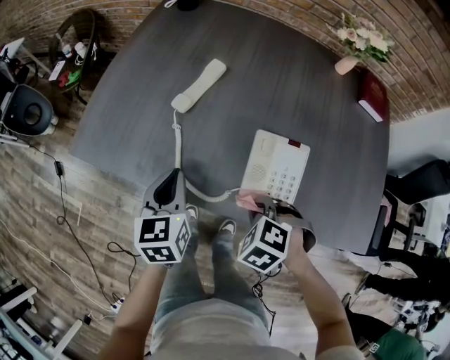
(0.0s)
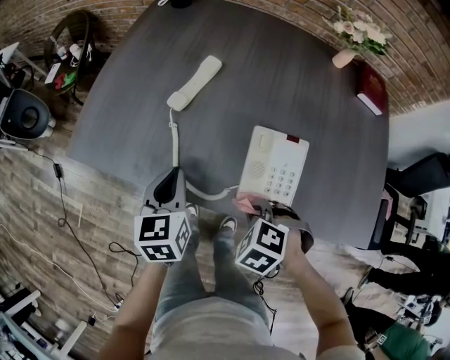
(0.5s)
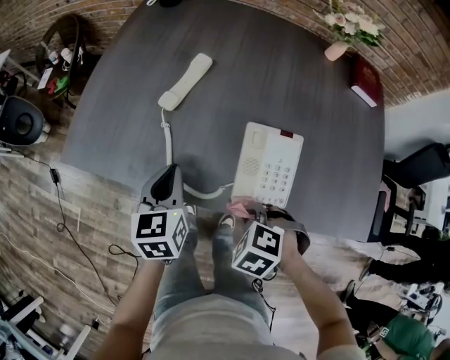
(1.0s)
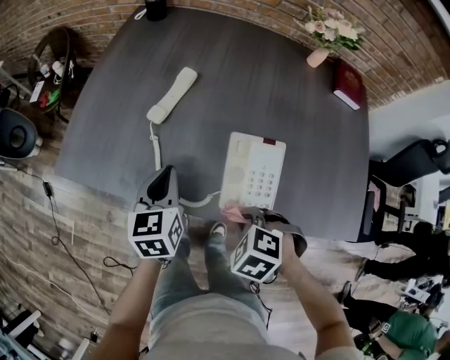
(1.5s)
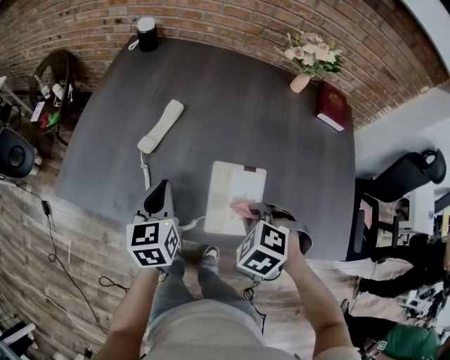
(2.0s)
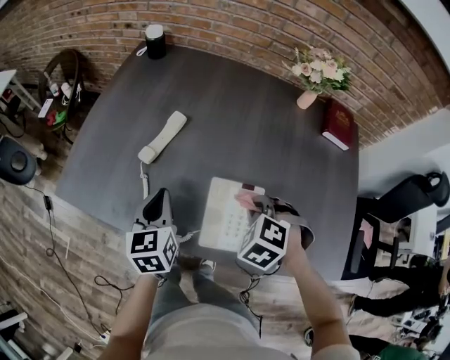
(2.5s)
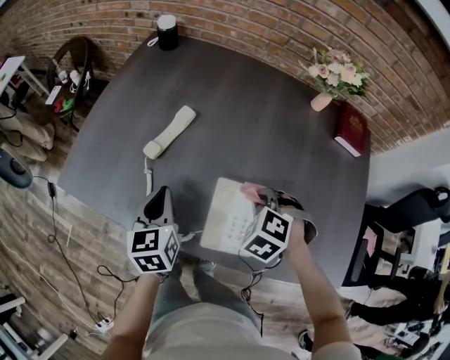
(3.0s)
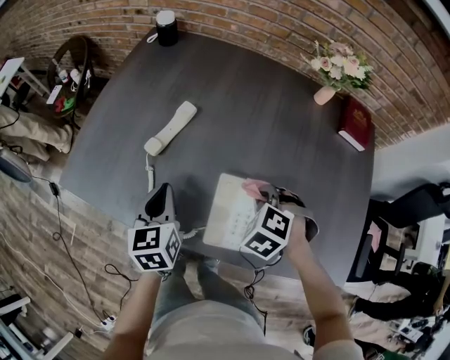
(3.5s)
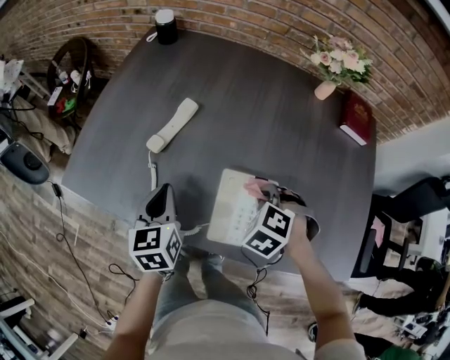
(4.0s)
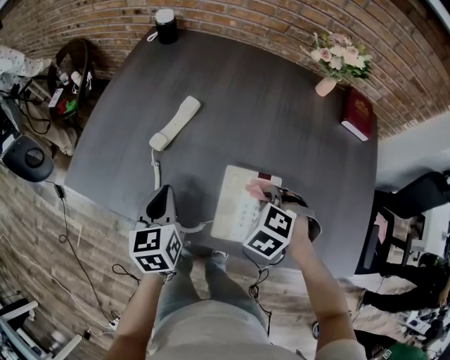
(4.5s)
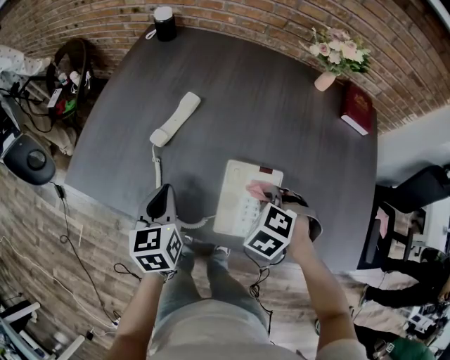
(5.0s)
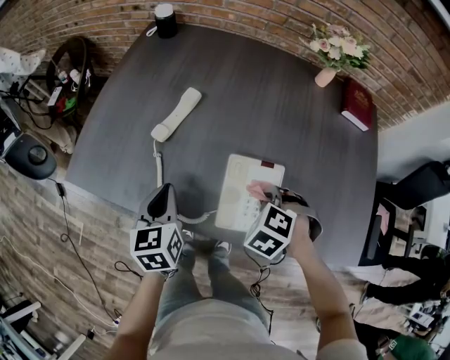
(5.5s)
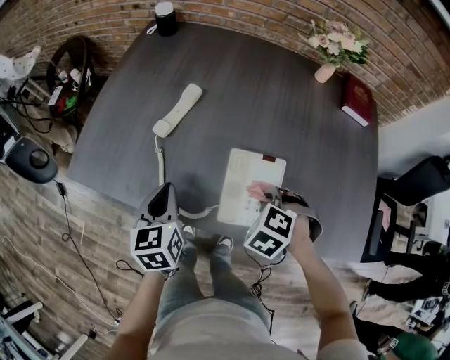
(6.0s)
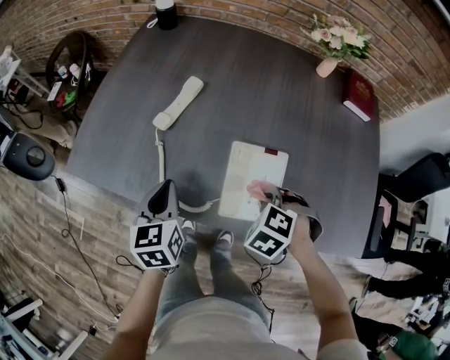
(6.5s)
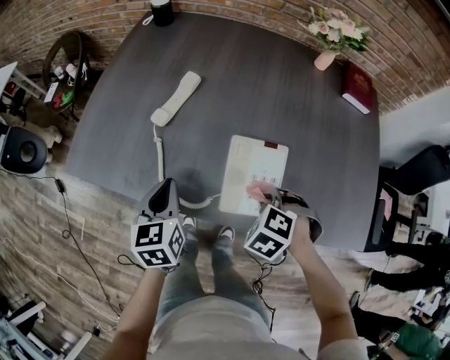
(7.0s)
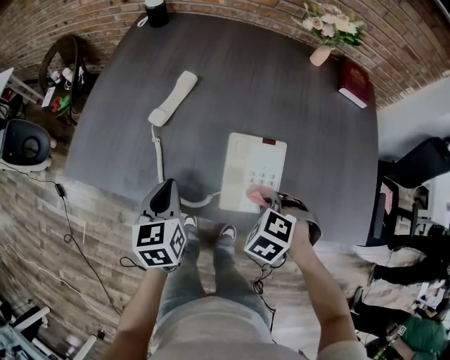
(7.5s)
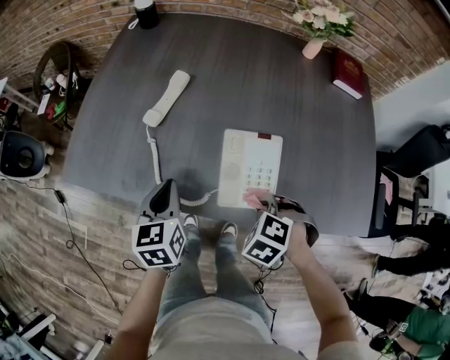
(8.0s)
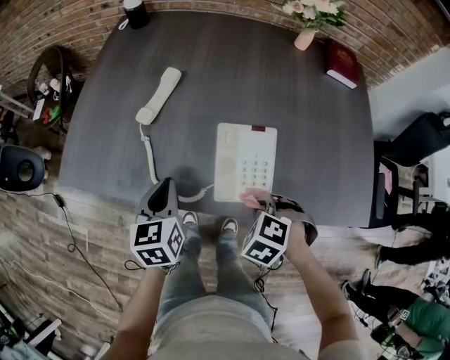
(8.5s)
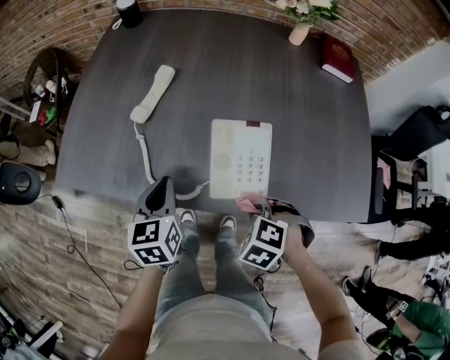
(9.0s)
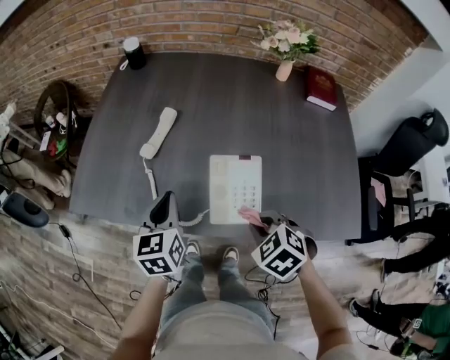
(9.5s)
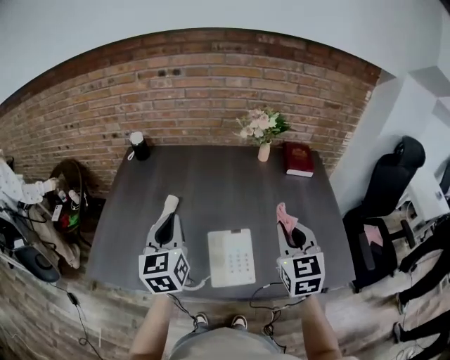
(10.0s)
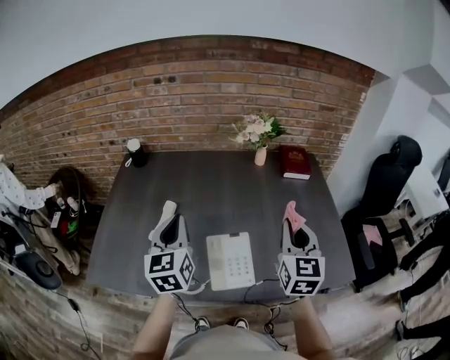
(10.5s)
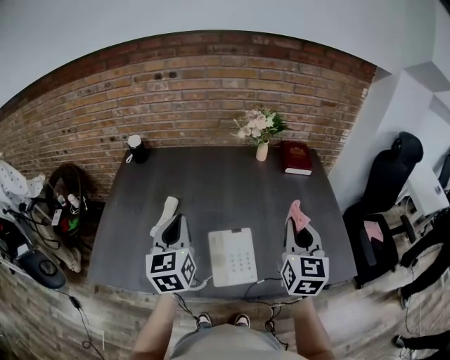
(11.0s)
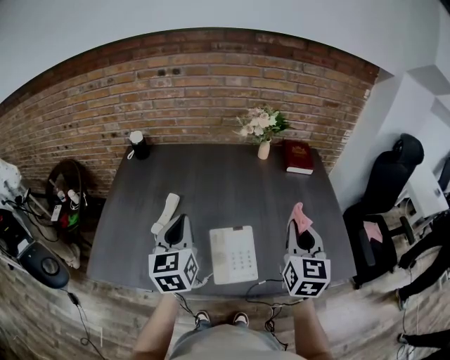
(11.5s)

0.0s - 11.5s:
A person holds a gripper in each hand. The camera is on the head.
0.0s - 2.0s: The left gripper ends up some 10 cm from where it was. The right gripper moves approximately 10 cm.
2.0s - 4.0s: The right gripper is displaced forward by approximately 10 cm.
4.0s - 6.0s: The right gripper travels backward by about 5 cm.
6.0s - 7.5s: The right gripper ends up roughly 5 cm from where it was.
7.5s - 9.5s: Both grippers move upward, about 5 cm. The right gripper changes its angle by some 30 degrees.
9.5s - 11.5s: The right gripper moves upward, to the right and forward, about 25 cm, and angles its fingers upward, by roughly 60 degrees, while the left gripper heads upward and forward, covering about 15 cm.

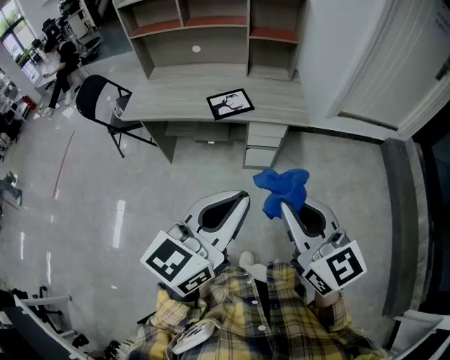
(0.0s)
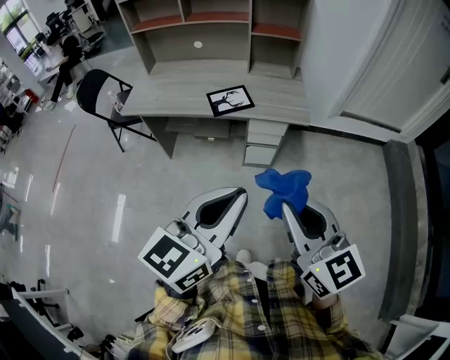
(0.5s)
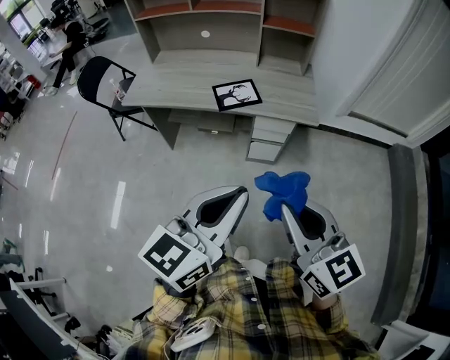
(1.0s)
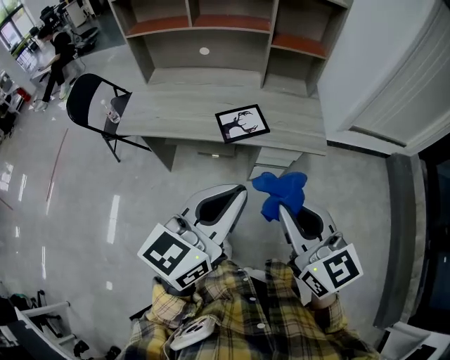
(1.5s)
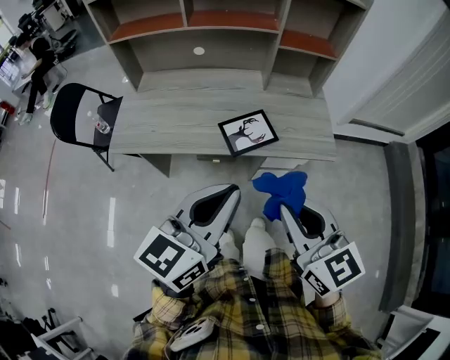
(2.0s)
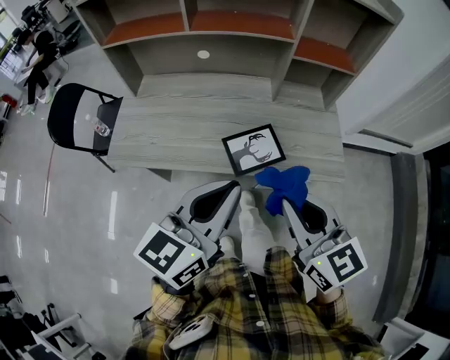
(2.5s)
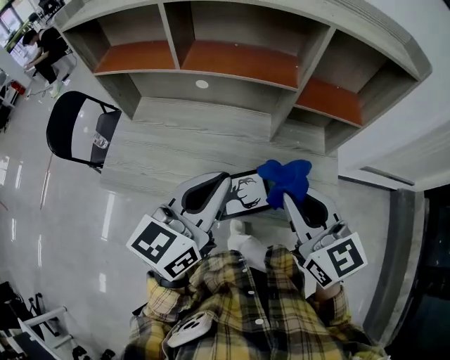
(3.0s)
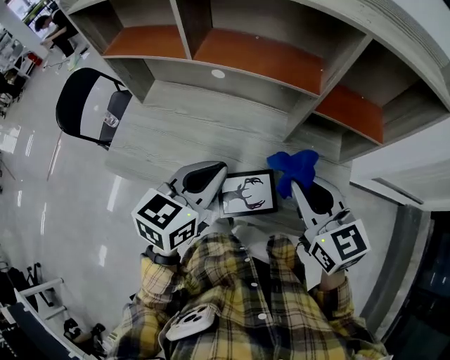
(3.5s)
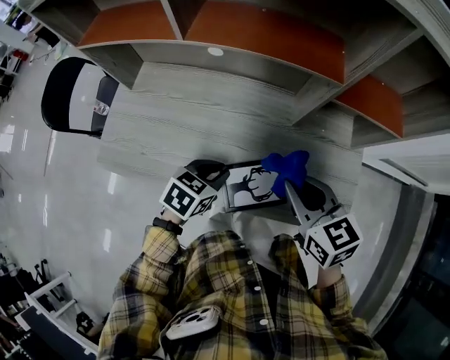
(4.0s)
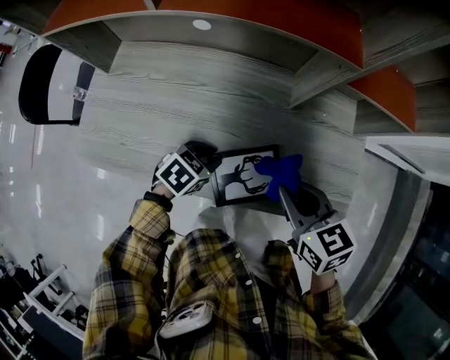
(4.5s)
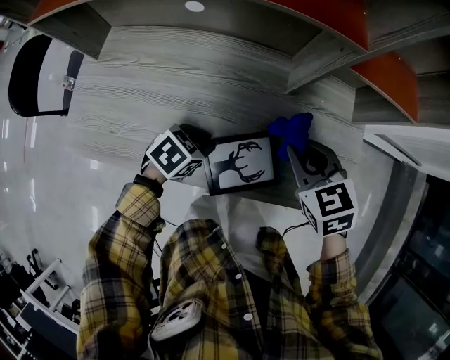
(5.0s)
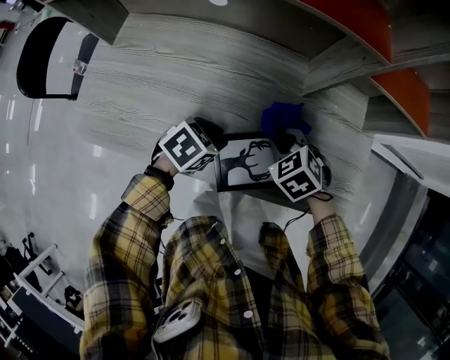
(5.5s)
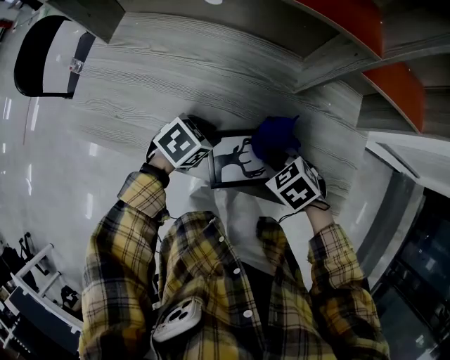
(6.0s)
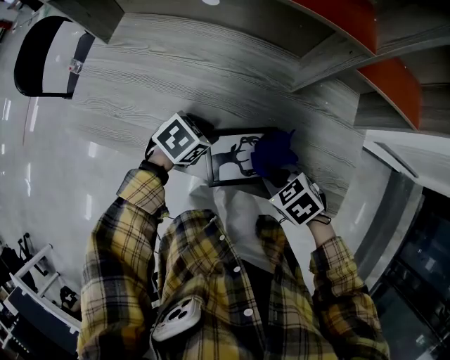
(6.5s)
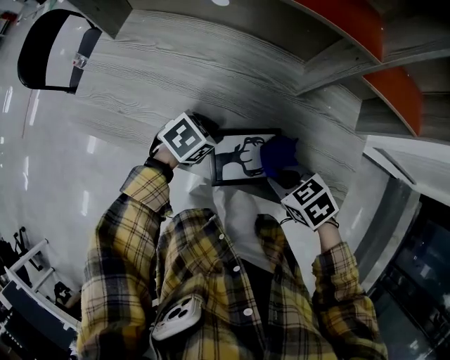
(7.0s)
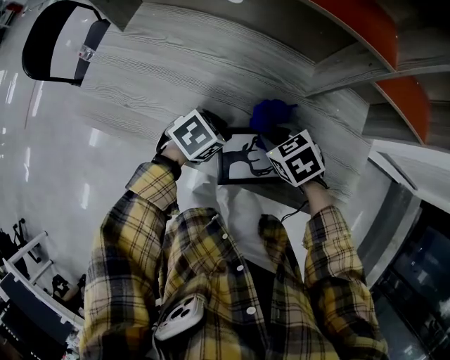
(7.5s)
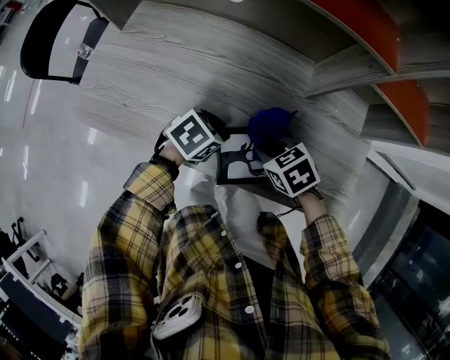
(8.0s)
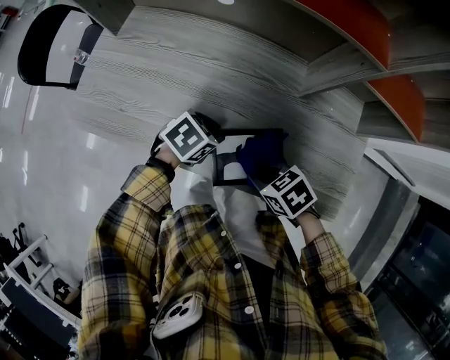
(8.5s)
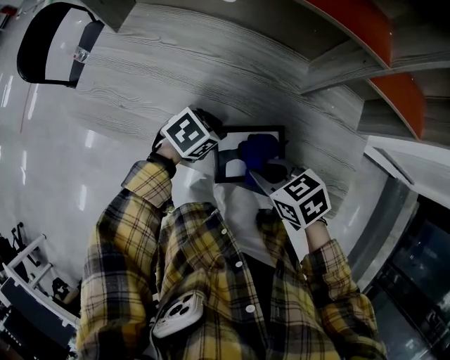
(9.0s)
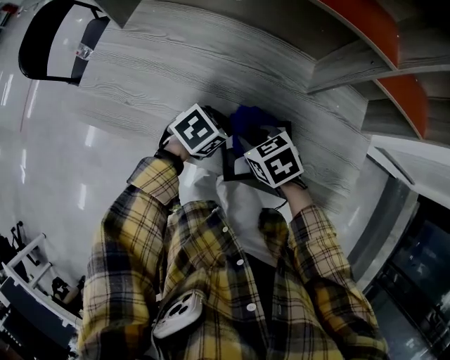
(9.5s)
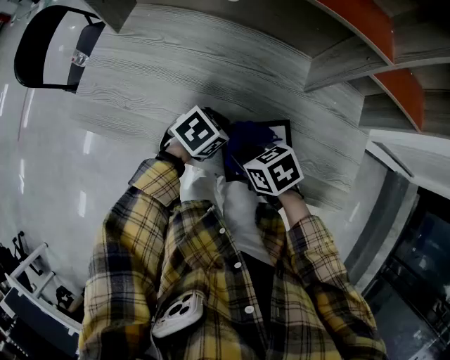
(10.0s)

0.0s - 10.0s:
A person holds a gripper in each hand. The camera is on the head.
0.0s - 2.0s: Both grippers move forward and to the left, approximately 30 cm.
2.0s - 4.0s: The left gripper moves forward and downward, some 40 cm, and points its fingers roughly 40 degrees further downward. Meanwhile the right gripper travels forward by some 35 cm, and rotates about 20 degrees.
4.0s - 6.0s: The right gripper moves downward, approximately 20 cm, and tilts its fingers about 40 degrees downward, while the left gripper shifts approximately 10 cm downward.
8.0s - 10.0s: The right gripper shifts by approximately 10 cm.

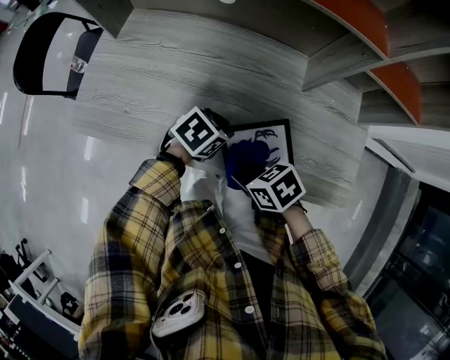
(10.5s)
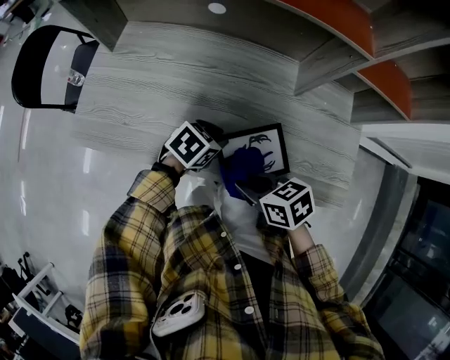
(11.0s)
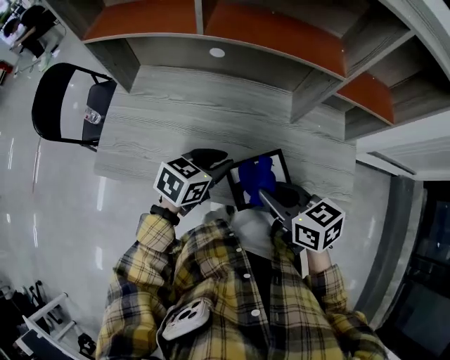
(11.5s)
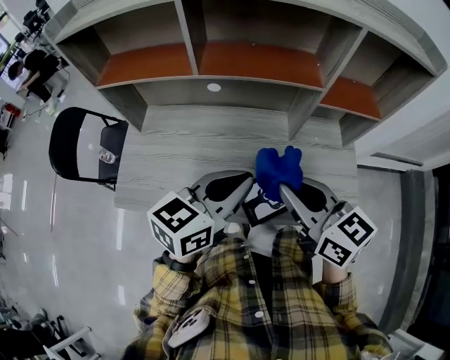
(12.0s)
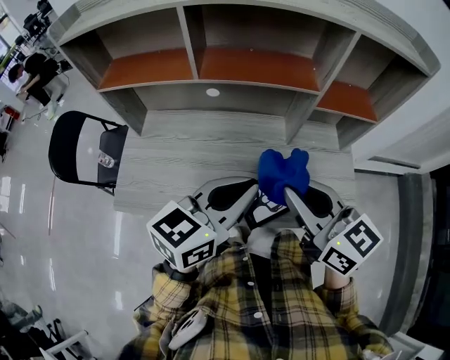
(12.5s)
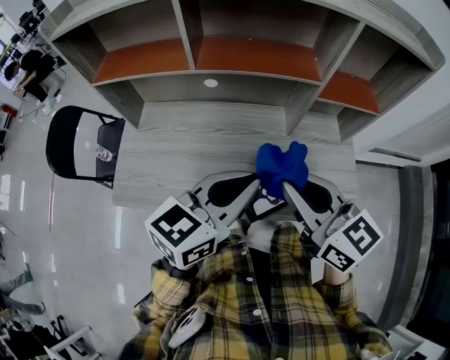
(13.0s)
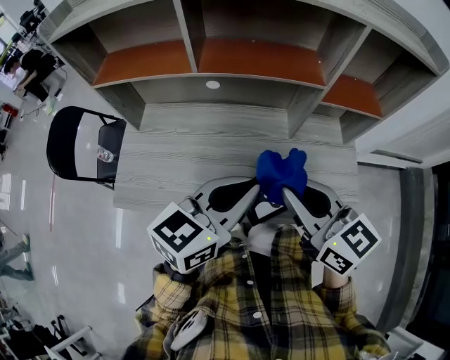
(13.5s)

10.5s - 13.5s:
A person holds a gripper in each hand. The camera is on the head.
10.5s - 12.0s: Both grippers travel together upward, roughly 30 cm. The right gripper tilts its fingers roughly 40 degrees upward, while the left gripper tips its fingers upward by approximately 40 degrees, and closes up.
12.0s - 13.5s: The grippers move only a little.

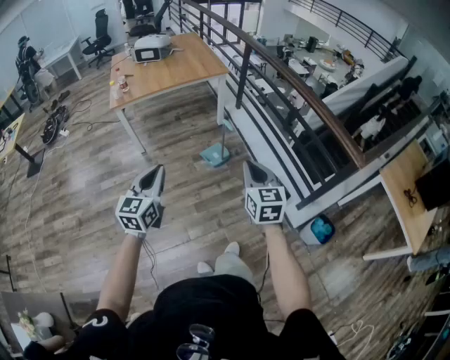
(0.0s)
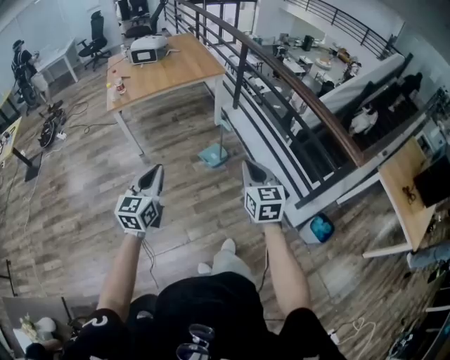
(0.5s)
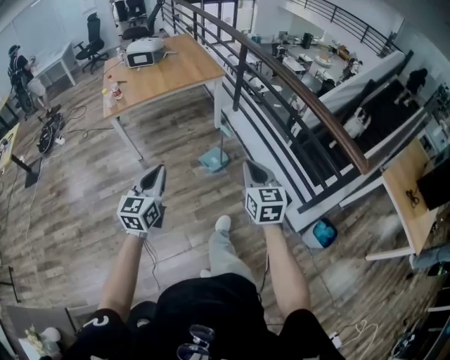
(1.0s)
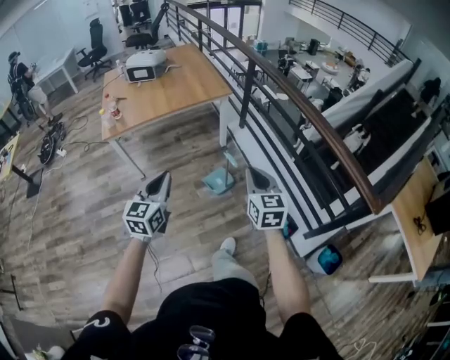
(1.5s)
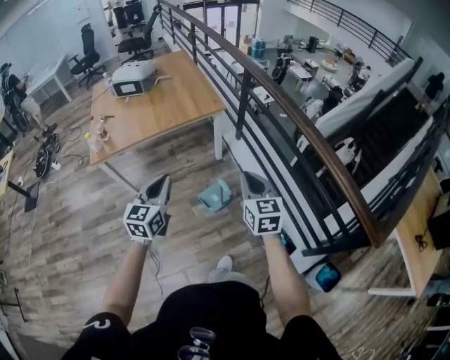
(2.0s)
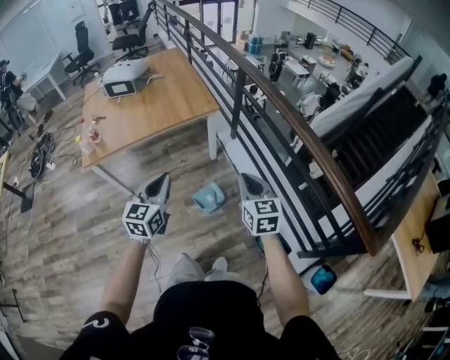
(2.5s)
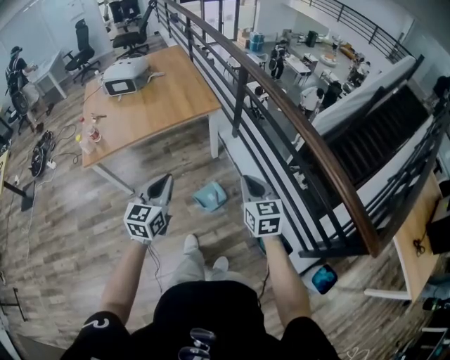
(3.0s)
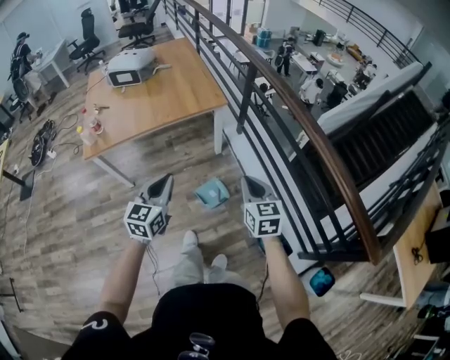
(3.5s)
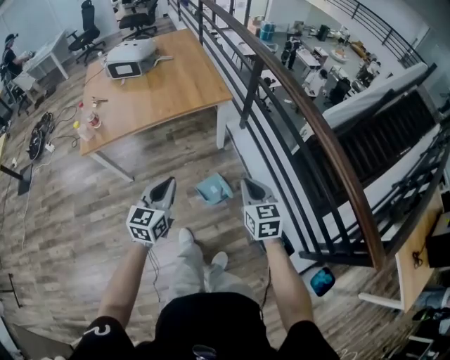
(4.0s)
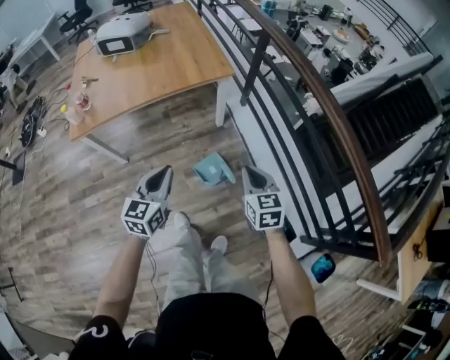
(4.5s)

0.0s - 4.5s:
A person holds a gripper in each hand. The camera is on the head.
0.0s - 2.0s: Both grippers are carried forward, about 40 cm.
2.0s - 4.5s: Both grippers travel together downward and forward, some 20 cm.
